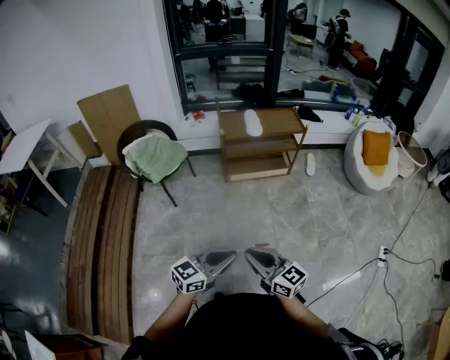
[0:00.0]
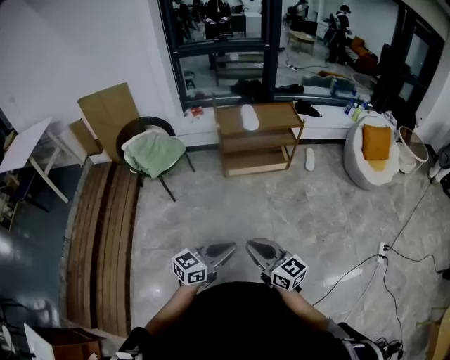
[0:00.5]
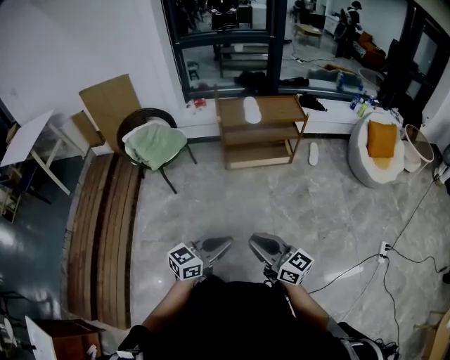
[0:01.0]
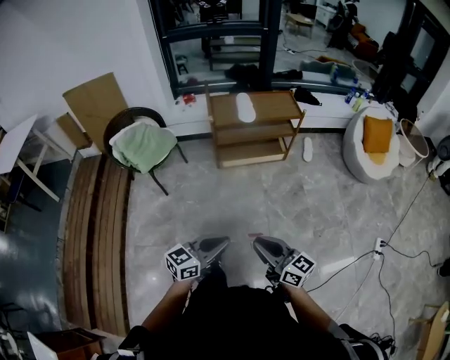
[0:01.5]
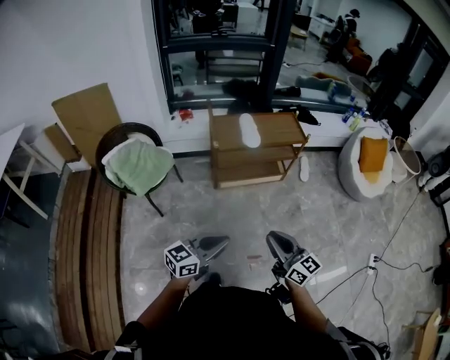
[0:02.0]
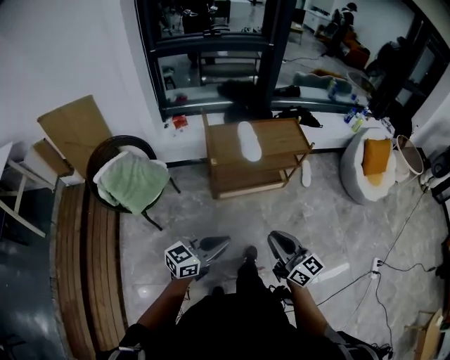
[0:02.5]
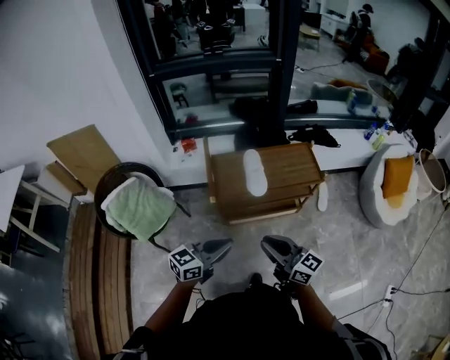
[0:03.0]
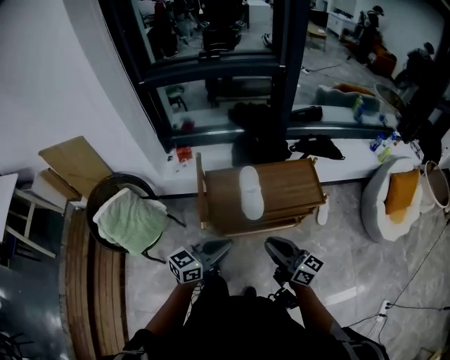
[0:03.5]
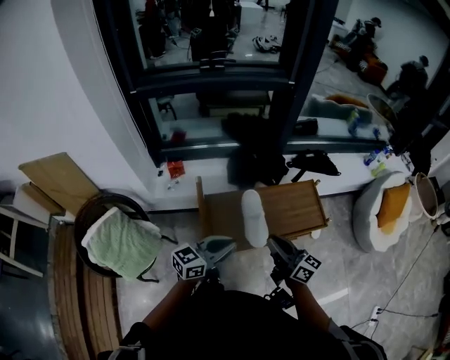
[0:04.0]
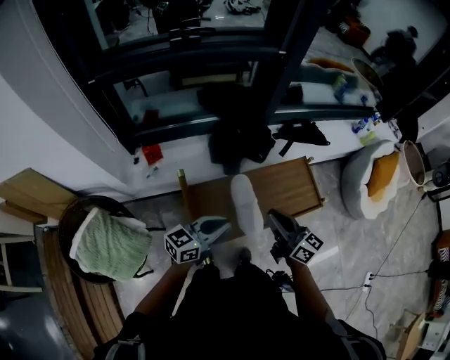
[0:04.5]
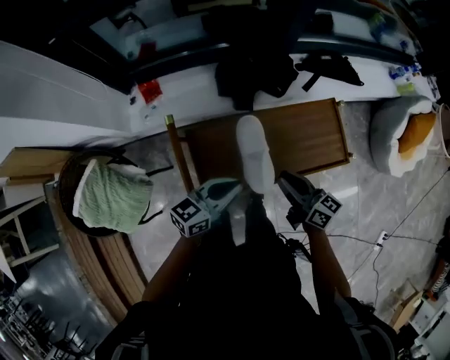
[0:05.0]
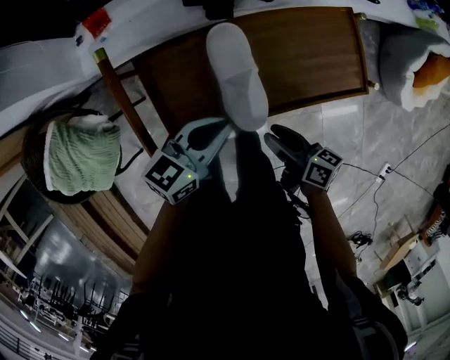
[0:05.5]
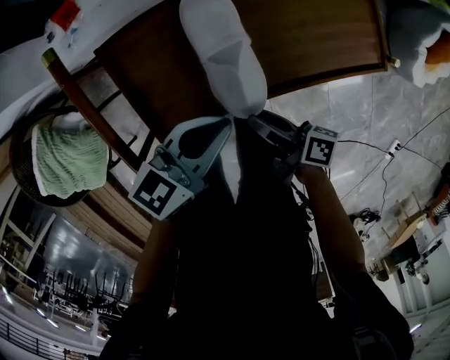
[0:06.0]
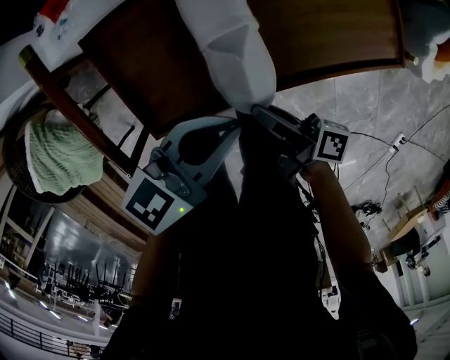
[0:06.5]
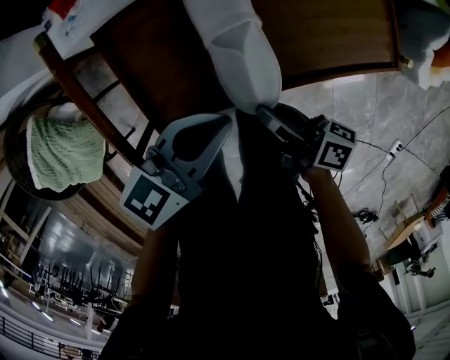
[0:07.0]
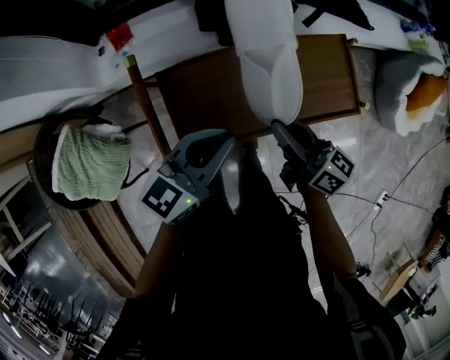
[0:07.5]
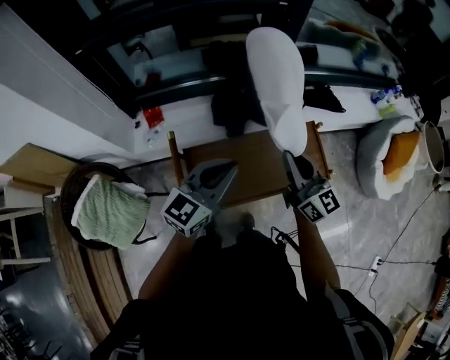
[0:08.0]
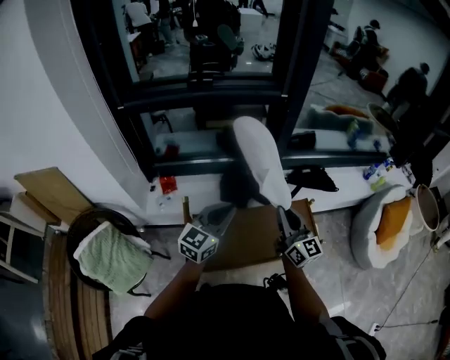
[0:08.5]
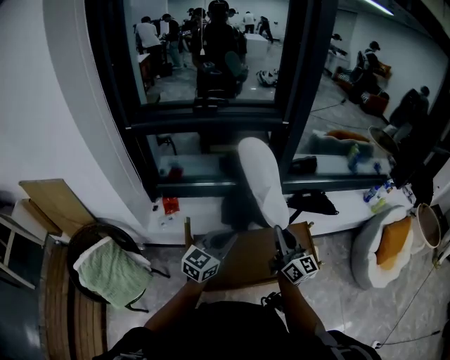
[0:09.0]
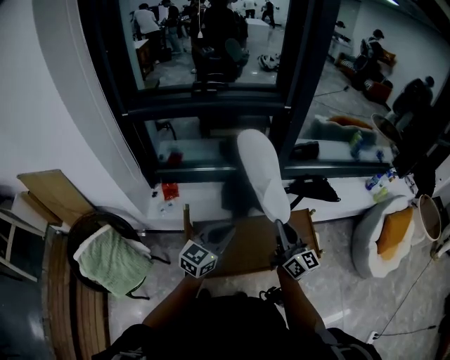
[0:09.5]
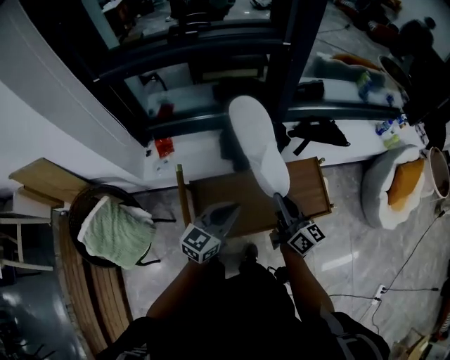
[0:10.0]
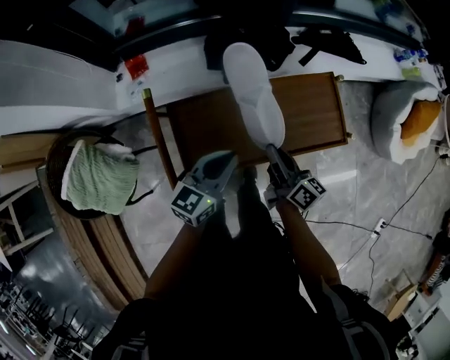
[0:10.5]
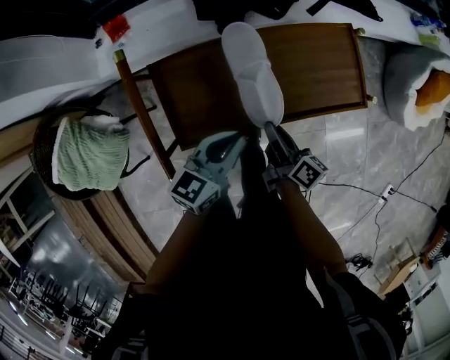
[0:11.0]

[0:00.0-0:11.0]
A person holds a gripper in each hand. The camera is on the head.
0:00.0 to 0:02.0: Both grippers travel together forward, some 25 cm.
0:02.0 to 0:03.5: The pair of grippers is taken forward, some 40 cm.
0:03.5 to 0:05.5: The right gripper moves downward and forward, approximately 30 cm, tilts its fingers about 30 degrees downward, and opens its fingers. Meanwhile the left gripper goes approximately 30 cm forward and downward.
0:05.5 to 0:07.5: The left gripper goes about 10 cm upward, while the right gripper travels upward and forward by some 15 cm, changes its angle by some 30 degrees, and closes its fingers.
0:07.5 to 0:09.0: The left gripper travels upward and forward by some 15 cm, and turns by roughly 20 degrees; the right gripper is displaced upward by roughly 20 cm, and changes its angle by about 40 degrees.
0:09.0 to 0:11.0: The grippers both shift downward by about 30 cm. The left gripper rotates approximately 30 degrees; the right gripper rotates around the line of its fingers by some 50 degrees, clockwise from behind.

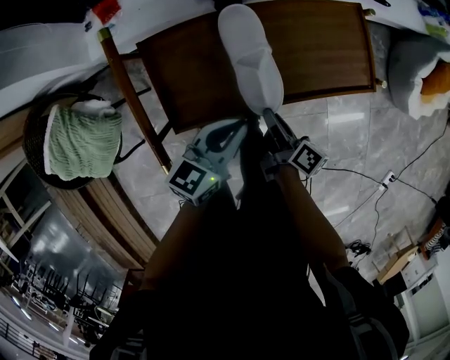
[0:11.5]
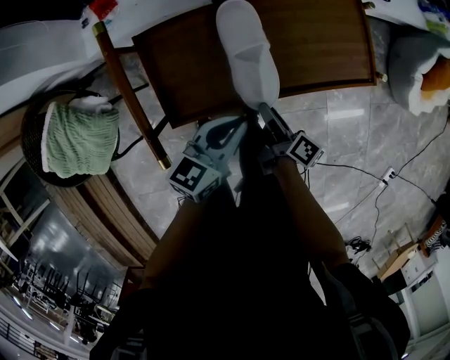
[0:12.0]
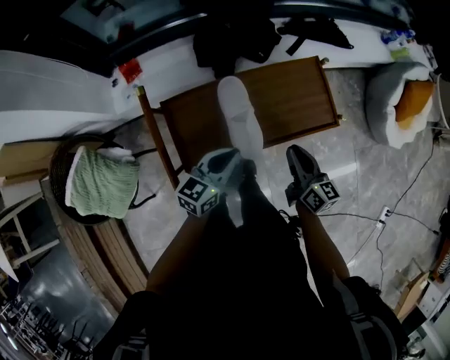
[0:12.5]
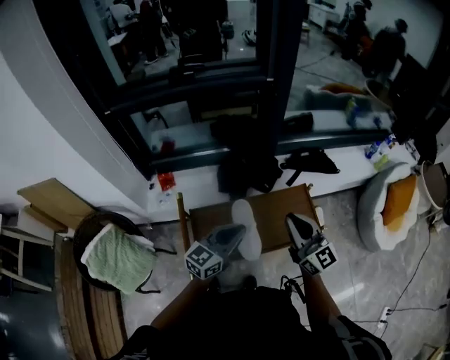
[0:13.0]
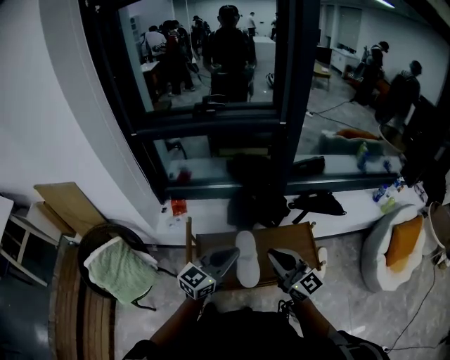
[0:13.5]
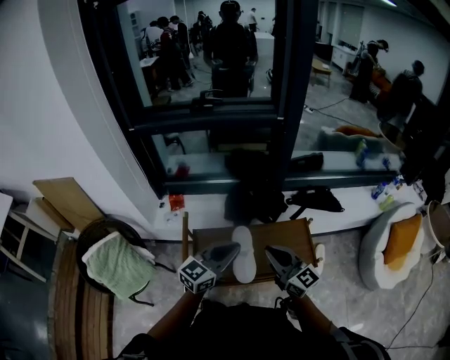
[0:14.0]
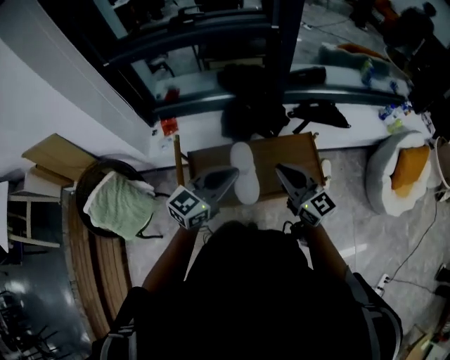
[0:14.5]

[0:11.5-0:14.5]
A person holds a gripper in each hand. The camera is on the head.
0:11.5 to 0:13.0: The left gripper heads upward, covering roughly 25 cm; the right gripper travels upward by approximately 40 cm, rolls counterclockwise, seen from behind, by roughly 70 degrees, and opens and closes again.
0:13.0 to 0:14.5: The grippers stay close to where they were, moving slightly.

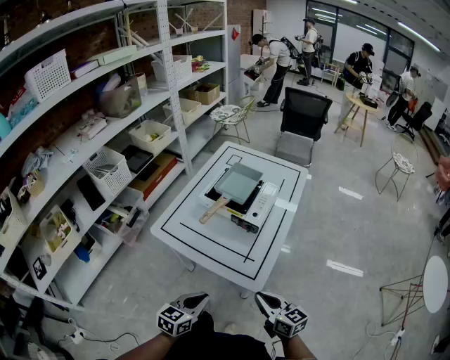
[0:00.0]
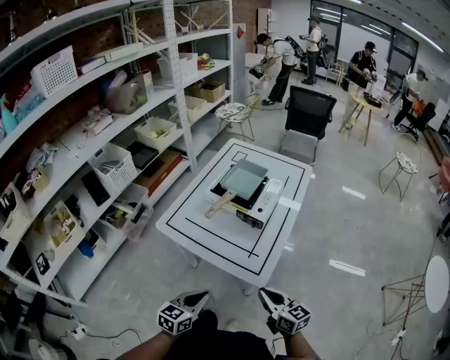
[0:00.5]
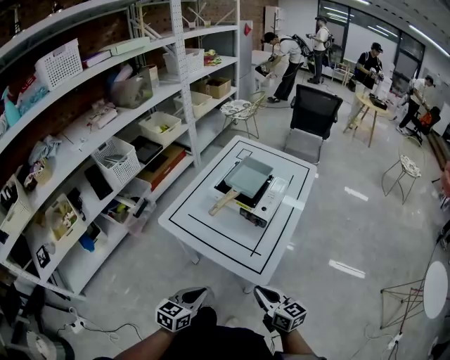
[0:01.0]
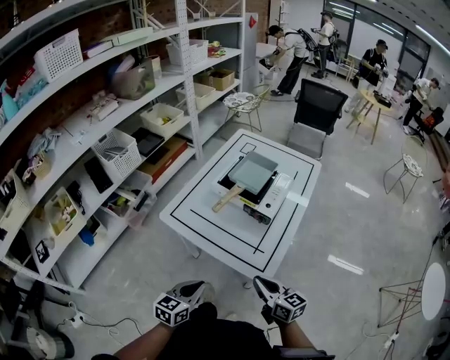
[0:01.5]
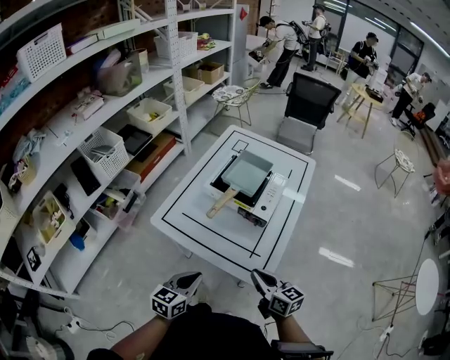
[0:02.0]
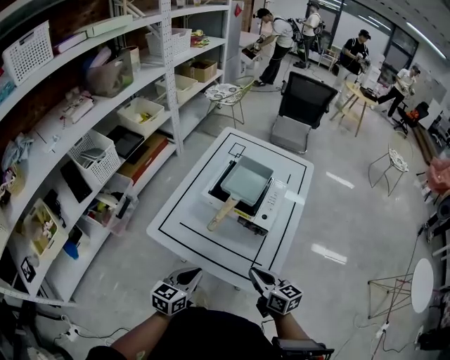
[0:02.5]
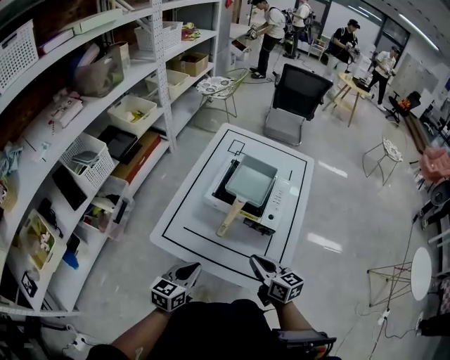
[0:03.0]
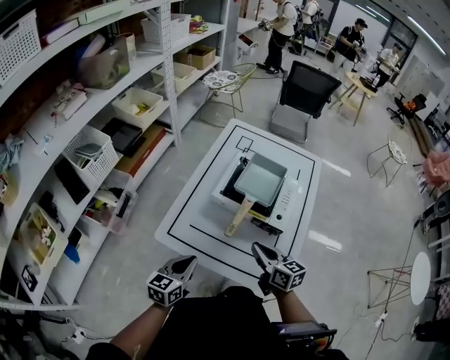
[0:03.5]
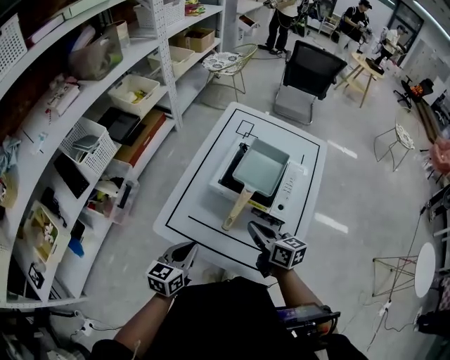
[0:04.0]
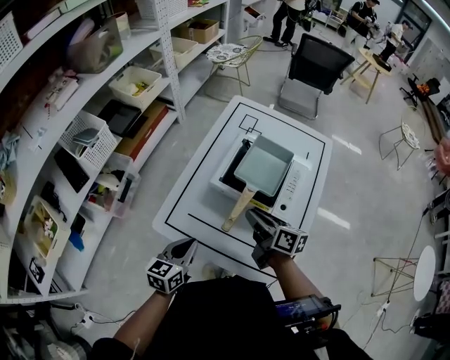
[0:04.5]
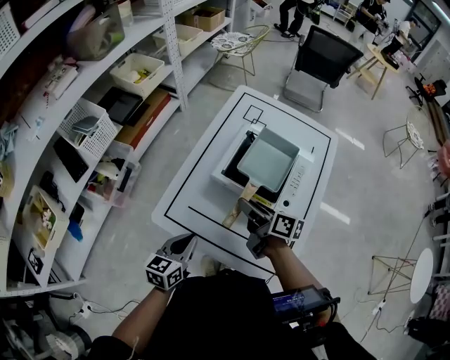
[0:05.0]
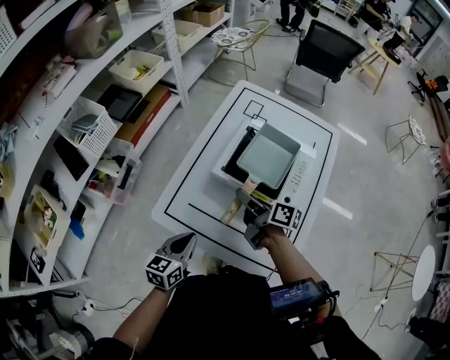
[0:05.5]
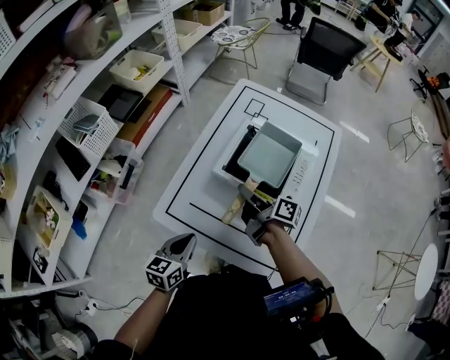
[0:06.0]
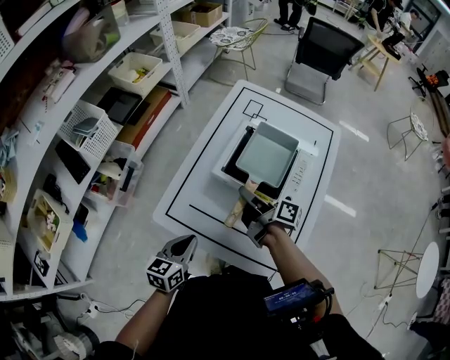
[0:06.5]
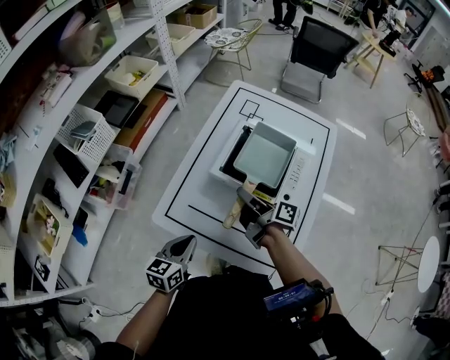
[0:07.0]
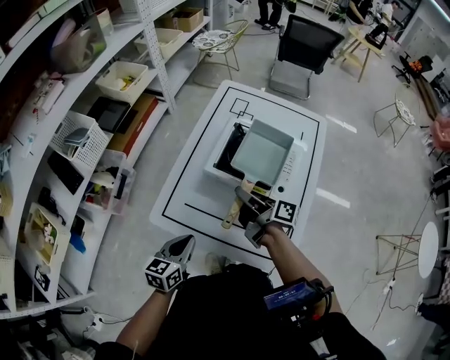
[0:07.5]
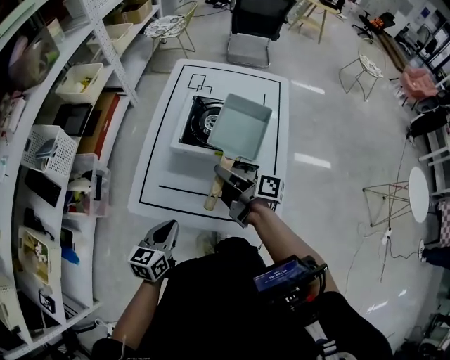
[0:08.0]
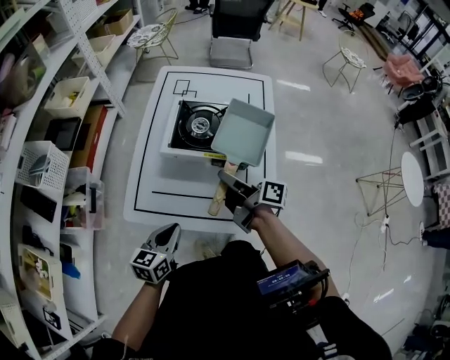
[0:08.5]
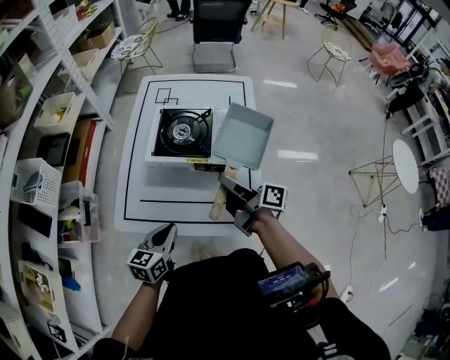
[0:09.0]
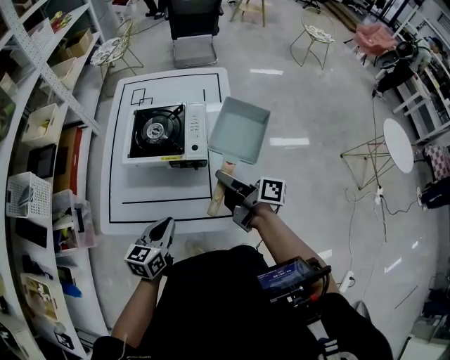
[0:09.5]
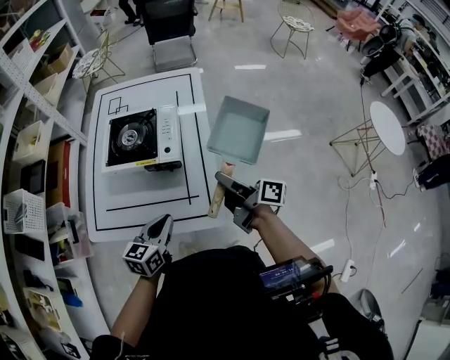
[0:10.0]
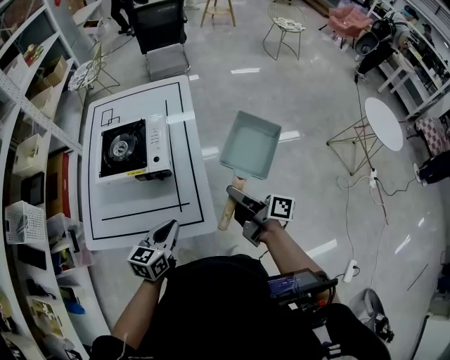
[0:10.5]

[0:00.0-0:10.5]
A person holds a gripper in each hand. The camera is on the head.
0:00.0 to 0:02.0: The right gripper heads forward, covering some 10 cm; the left gripper shifts approximately 10 cm forward and to the left.
0:02.0 to 0:04.0: Both grippers travel together forward and to the left, approximately 20 cm.
0:04.0 to 0:06.5: The right gripper travels forward by approximately 10 cm, rolls clockwise, seen from behind, by roughly 40 degrees, and opens its fingers.
0:06.5 to 0:08.5: The right gripper is displaced backward and to the right by roughly 10 cm.
0:08.5 to 0:10.5: The grippers both shift to the right by some 25 cm.

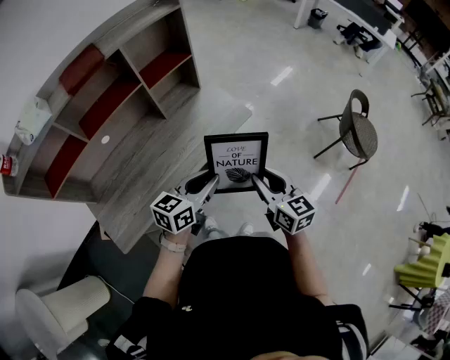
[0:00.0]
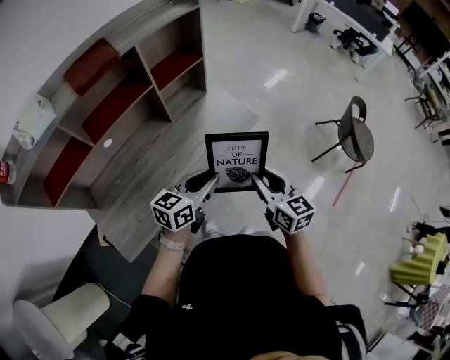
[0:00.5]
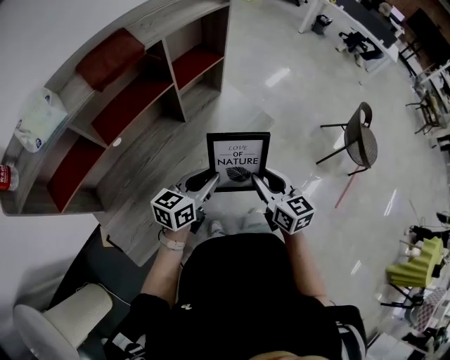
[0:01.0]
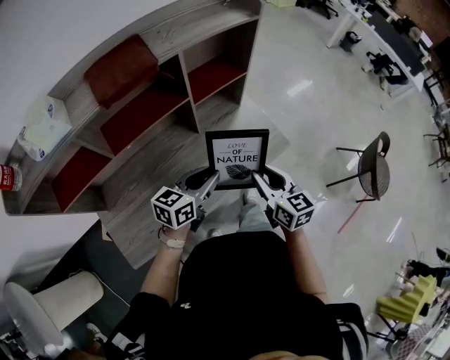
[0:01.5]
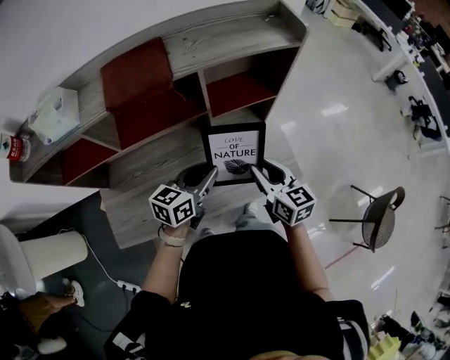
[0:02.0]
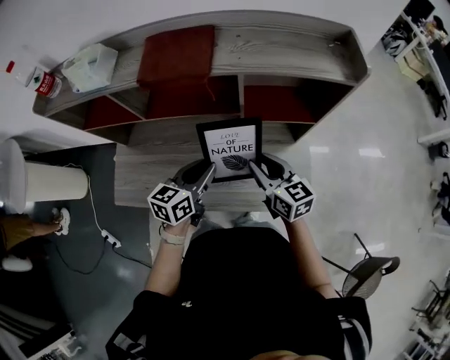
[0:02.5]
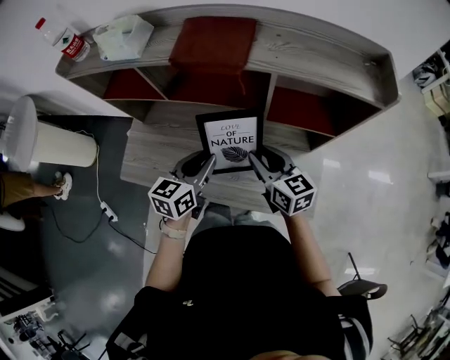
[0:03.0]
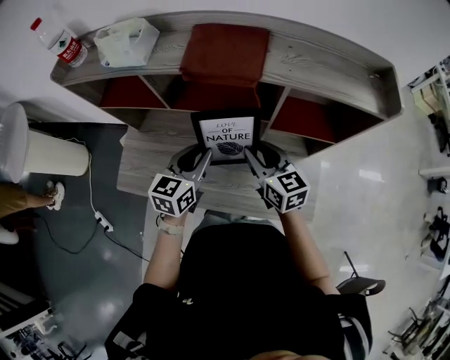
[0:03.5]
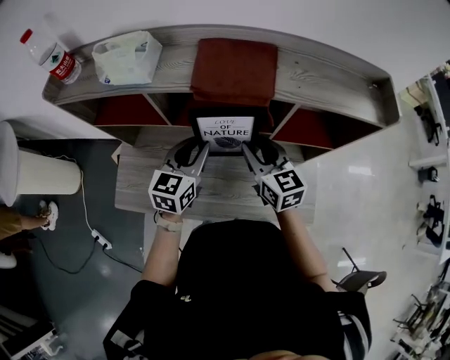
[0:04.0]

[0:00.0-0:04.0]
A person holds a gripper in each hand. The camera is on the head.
0:00.0 to 0:02.0: The left gripper changes place by roughly 30 cm, and turns by approximately 30 degrees, while the right gripper changes place by about 35 cm, and swivels about 30 degrees.
0:02.0 to 0:04.0: The left gripper ends up some 20 cm from where it was, and turns by approximately 40 degrees. The right gripper ends up approximately 20 cm from where it was, and turns by roughly 30 degrees.
